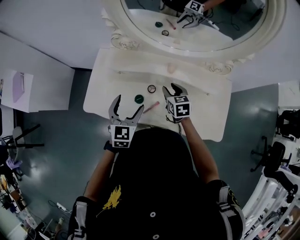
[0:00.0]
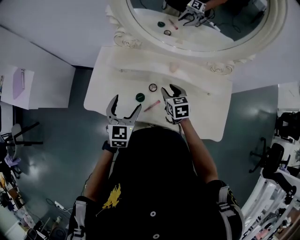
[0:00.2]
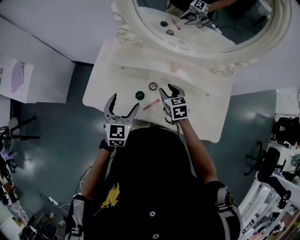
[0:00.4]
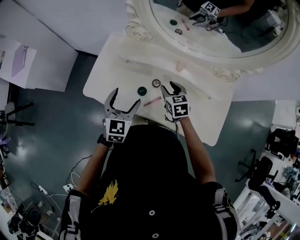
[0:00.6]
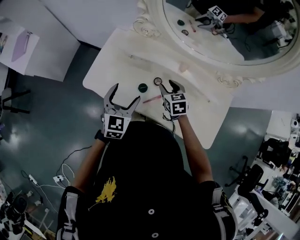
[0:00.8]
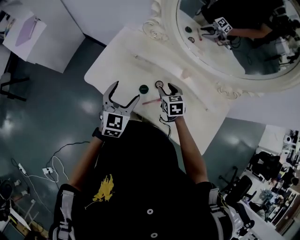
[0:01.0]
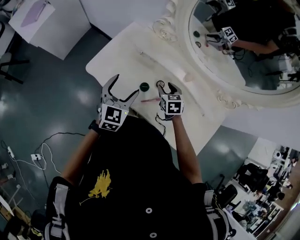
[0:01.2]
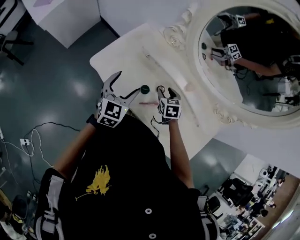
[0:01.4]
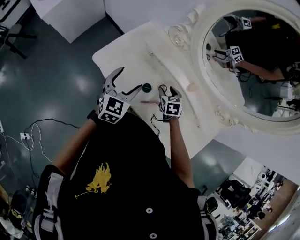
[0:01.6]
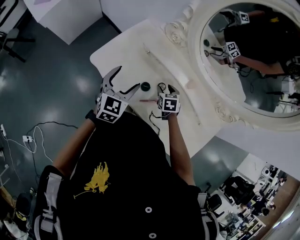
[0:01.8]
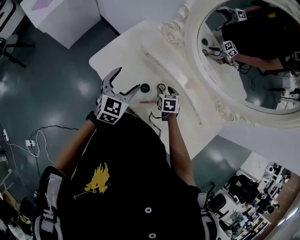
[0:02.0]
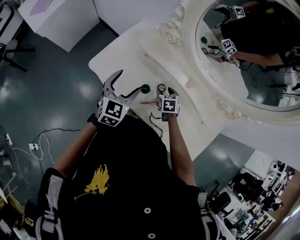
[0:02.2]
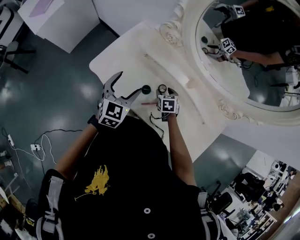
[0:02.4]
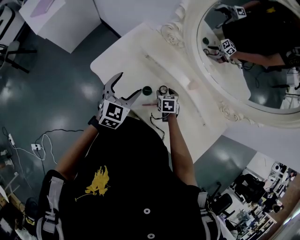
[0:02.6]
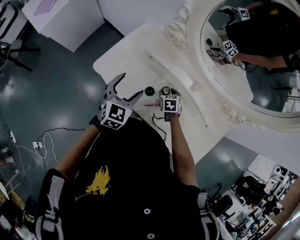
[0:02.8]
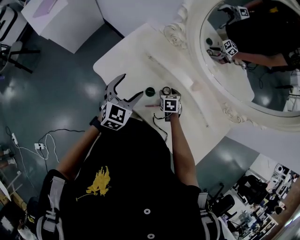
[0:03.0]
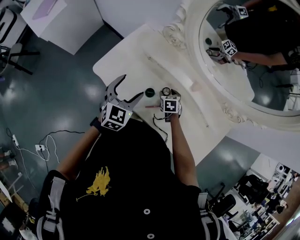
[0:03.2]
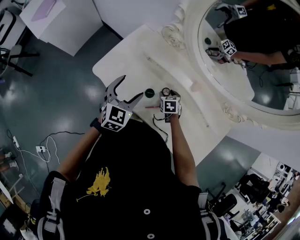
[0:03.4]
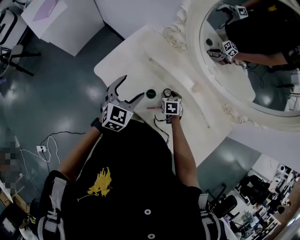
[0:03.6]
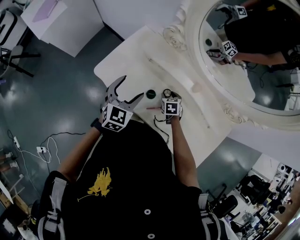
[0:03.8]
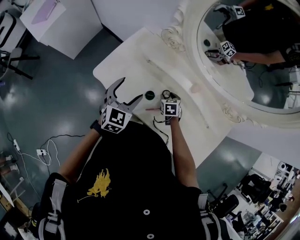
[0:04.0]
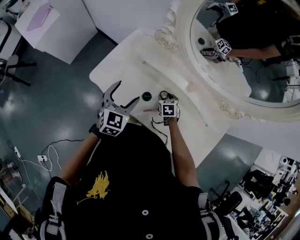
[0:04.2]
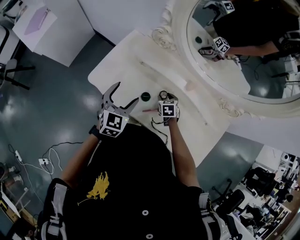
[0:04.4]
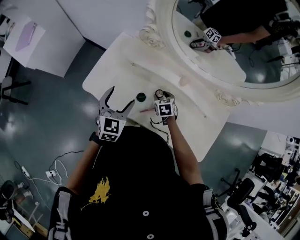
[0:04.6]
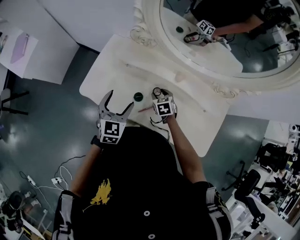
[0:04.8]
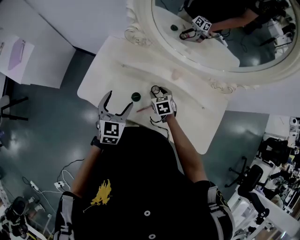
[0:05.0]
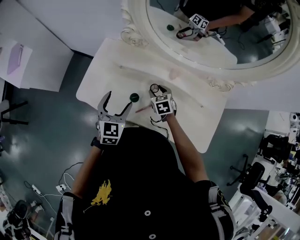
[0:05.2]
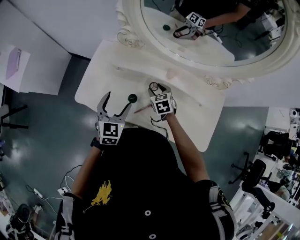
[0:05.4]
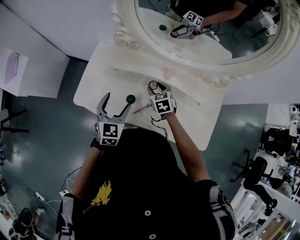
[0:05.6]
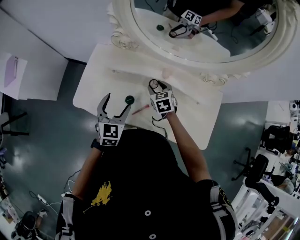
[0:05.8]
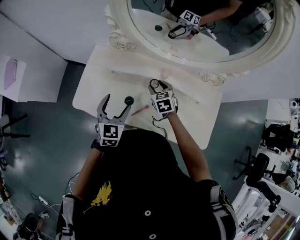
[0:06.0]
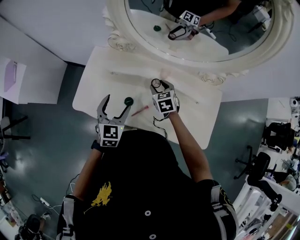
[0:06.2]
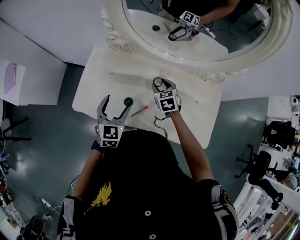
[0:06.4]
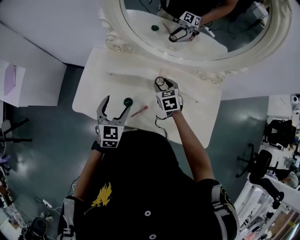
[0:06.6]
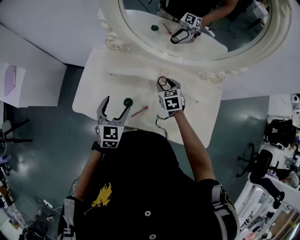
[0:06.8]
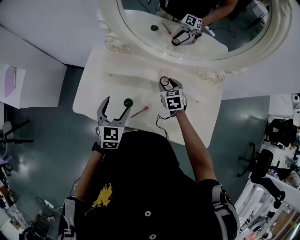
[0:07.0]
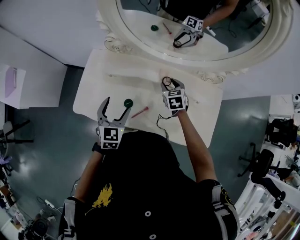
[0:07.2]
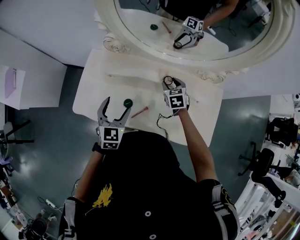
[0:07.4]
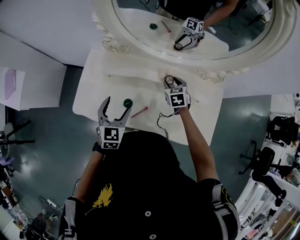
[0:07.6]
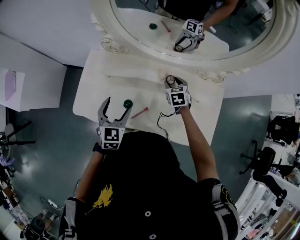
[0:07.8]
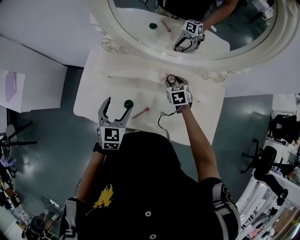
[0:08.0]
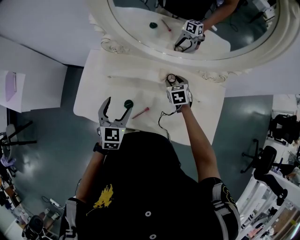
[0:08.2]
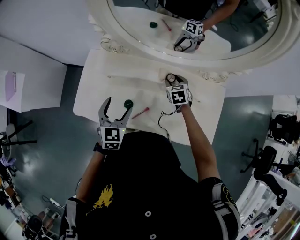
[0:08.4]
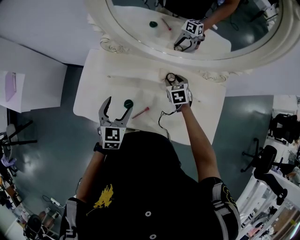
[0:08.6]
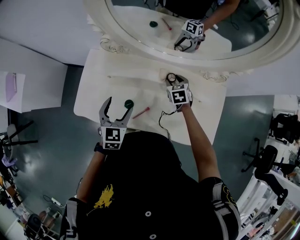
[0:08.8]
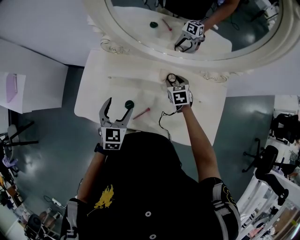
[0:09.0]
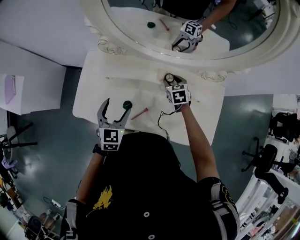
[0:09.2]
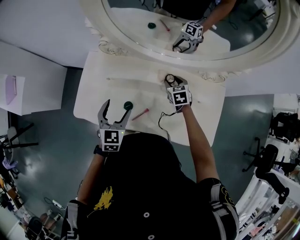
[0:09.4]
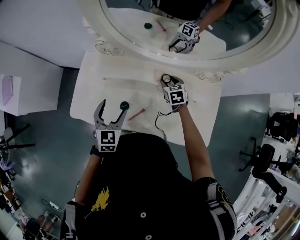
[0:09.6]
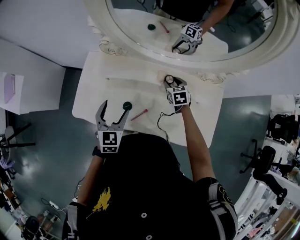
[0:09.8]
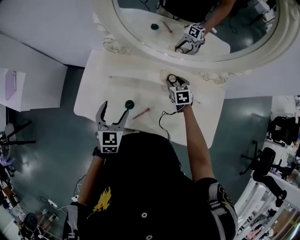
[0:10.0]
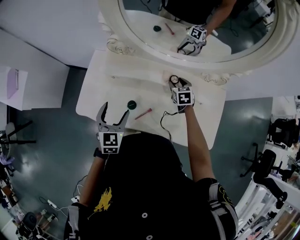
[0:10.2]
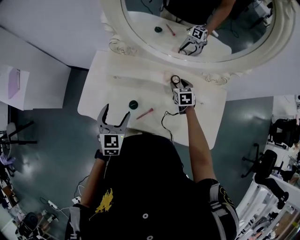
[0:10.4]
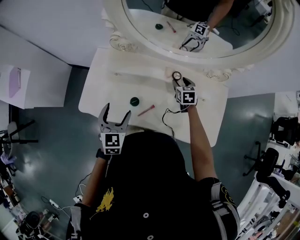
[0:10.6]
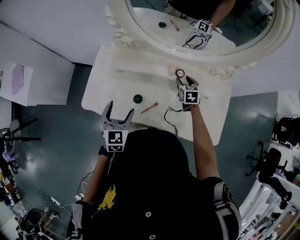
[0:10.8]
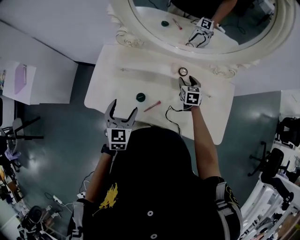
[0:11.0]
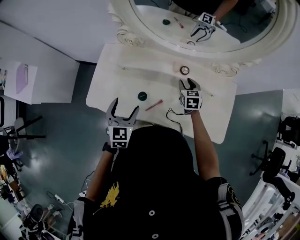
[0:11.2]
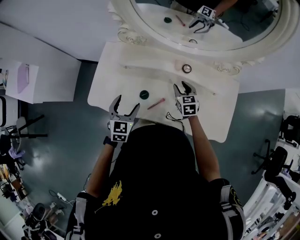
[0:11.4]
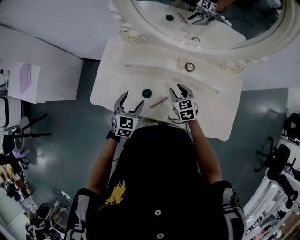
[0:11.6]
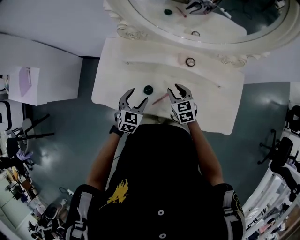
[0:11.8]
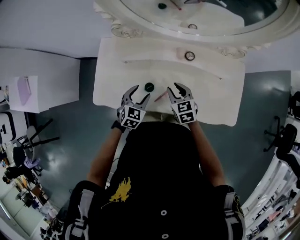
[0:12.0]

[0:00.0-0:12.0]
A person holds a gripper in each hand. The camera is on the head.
0:00.0 to 0:01.6: The left gripper shifts approximately 10 cm to the left, and rotates approximately 20 degrees, while the right gripper is displaced to the left and downward by roughly 10 cm, and turns by approximately 30 degrees.
0:01.6 to 0:03.0: The right gripper moves downward, approximately 10 cm.
0:03.0 to 0:04.4: The grippers move only a little.
0:04.4 to 0:06.0: The right gripper shifts about 10 cm upward; the left gripper travels to the right by roughly 5 cm.
0:06.0 to 0:07.6: The right gripper travels to the right by about 10 cm.
0:07.6 to 0:09.0: The grippers move only a little.
0:09.0 to 0:10.4: The left gripper moves roughly 5 cm.
0:10.4 to 0:12.0: The left gripper is displaced downward by some 10 cm, and changes its angle by some 30 degrees. The right gripper shifts roughly 20 cm backward and to the left.

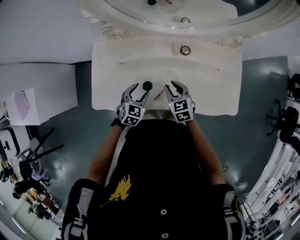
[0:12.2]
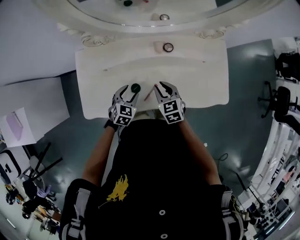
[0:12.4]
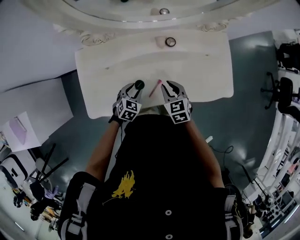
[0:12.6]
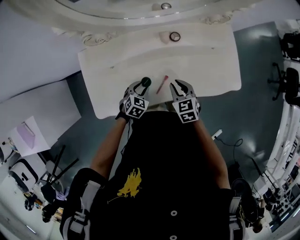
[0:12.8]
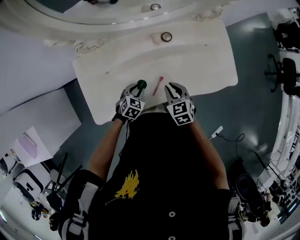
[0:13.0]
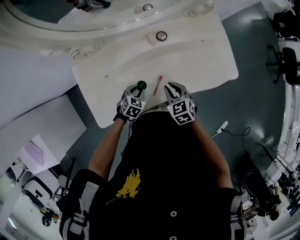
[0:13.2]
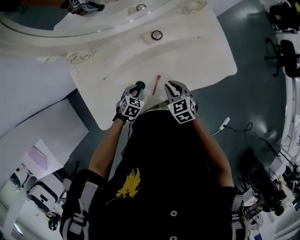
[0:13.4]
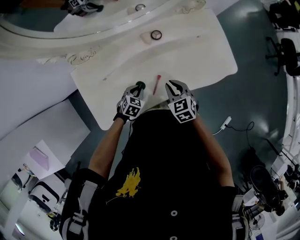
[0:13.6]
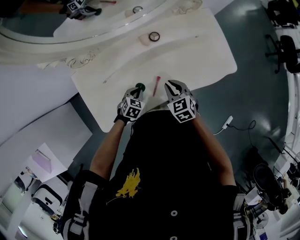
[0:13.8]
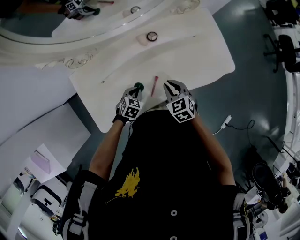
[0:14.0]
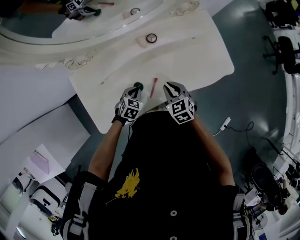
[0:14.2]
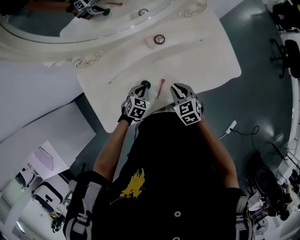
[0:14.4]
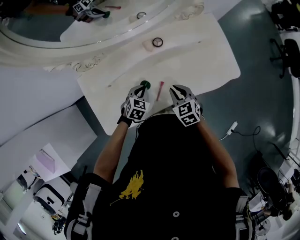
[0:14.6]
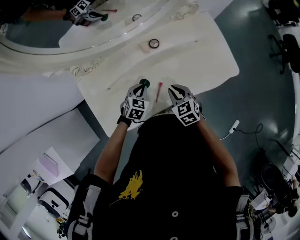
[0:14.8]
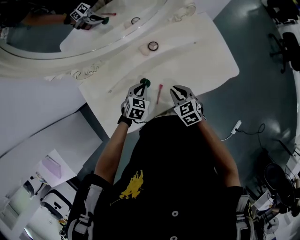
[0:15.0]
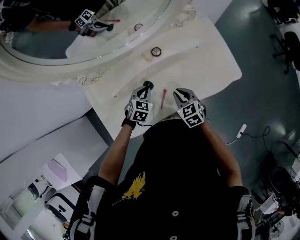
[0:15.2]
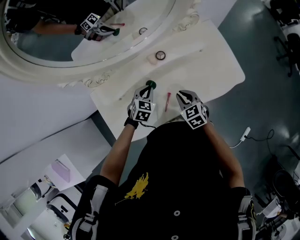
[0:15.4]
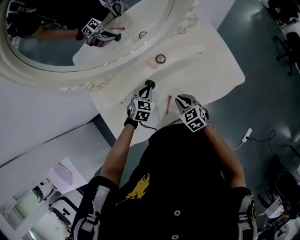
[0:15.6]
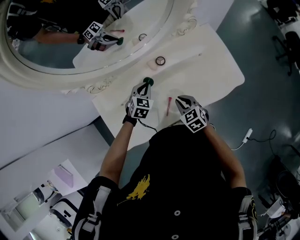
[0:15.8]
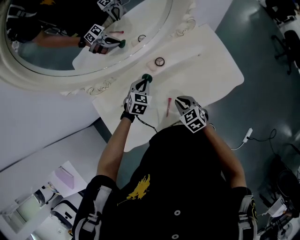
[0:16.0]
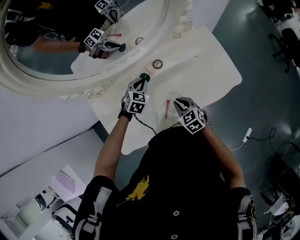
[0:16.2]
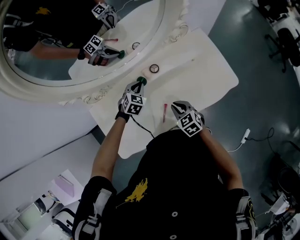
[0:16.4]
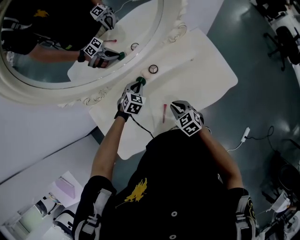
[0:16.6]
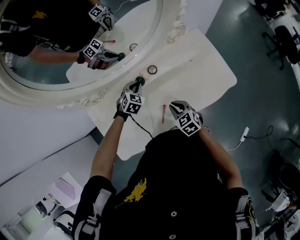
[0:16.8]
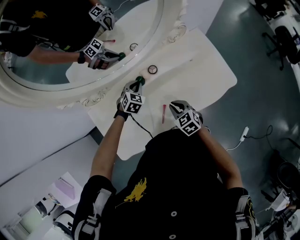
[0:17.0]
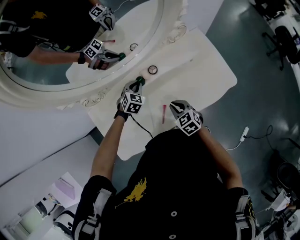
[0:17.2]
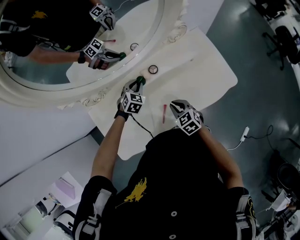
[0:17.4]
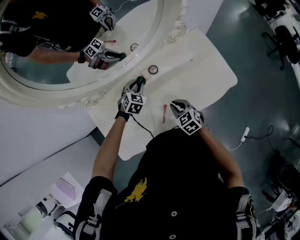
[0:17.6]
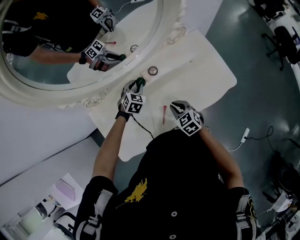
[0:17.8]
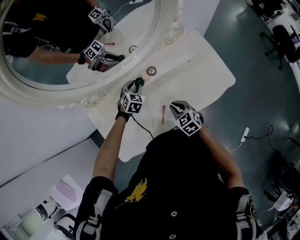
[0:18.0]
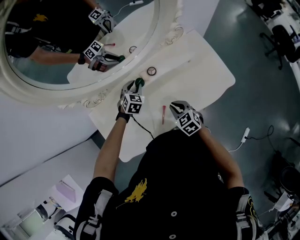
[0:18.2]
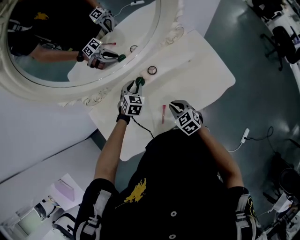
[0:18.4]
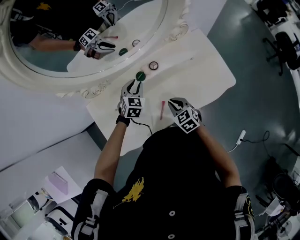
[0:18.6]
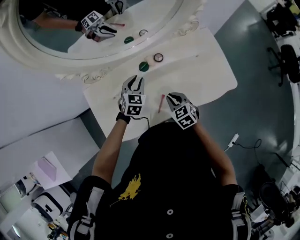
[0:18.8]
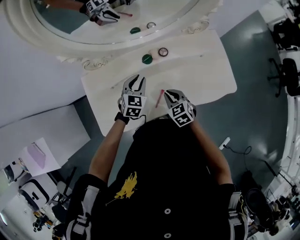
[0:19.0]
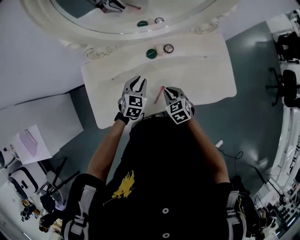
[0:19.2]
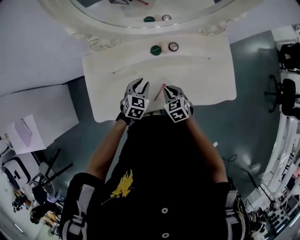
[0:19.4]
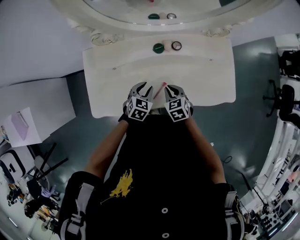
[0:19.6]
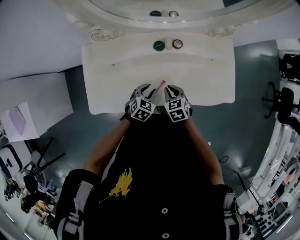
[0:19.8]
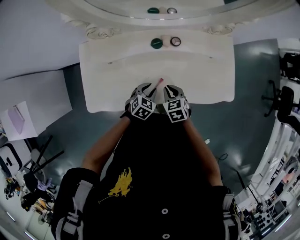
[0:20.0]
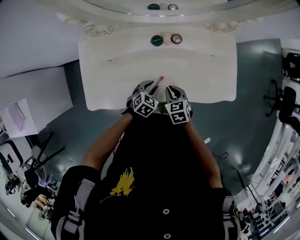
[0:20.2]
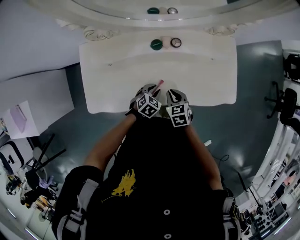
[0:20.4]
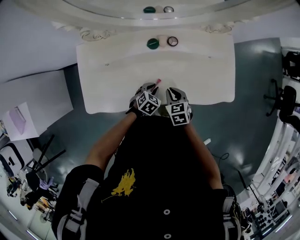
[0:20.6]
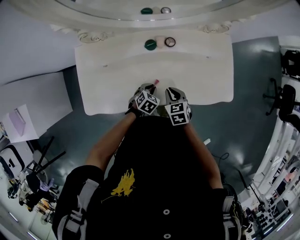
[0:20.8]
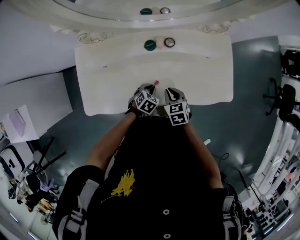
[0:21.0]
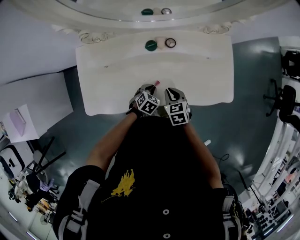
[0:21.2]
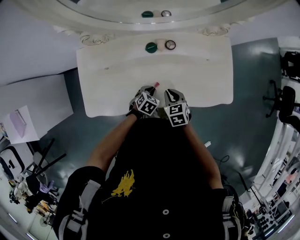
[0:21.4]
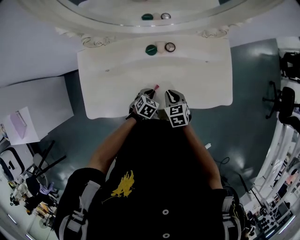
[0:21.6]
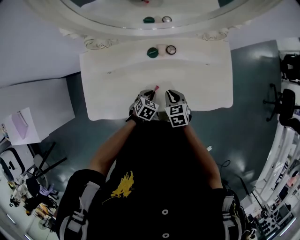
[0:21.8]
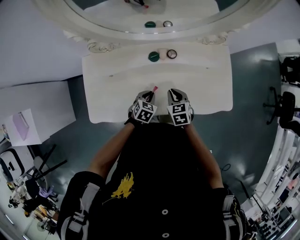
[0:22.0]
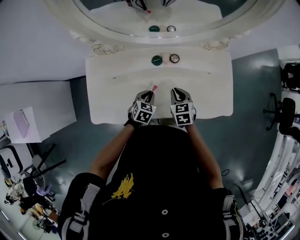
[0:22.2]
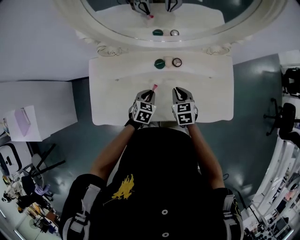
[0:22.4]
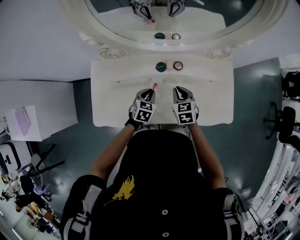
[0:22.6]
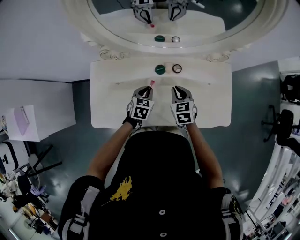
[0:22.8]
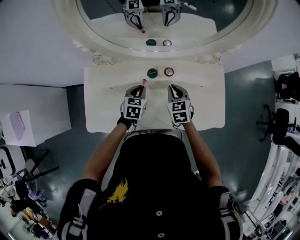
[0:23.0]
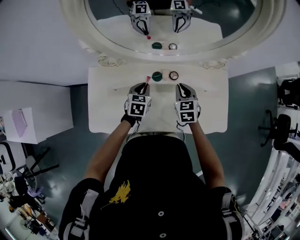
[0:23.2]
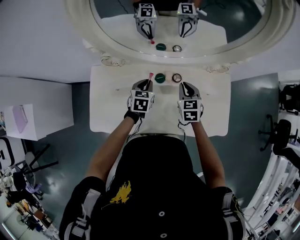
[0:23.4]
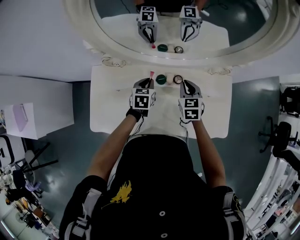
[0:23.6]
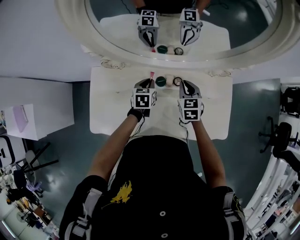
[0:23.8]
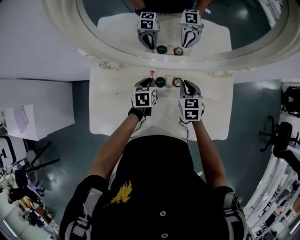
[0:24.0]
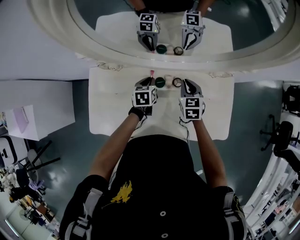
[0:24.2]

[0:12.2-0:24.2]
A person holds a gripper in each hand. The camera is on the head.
0:12.2 to 0:13.8: The right gripper ends up approximately 5 cm from where it was, while the left gripper heads downward, covering some 10 cm, turns by about 30 degrees, and closes.
0:13.8 to 0:15.2: The left gripper travels upward and forward by roughly 10 cm.
0:15.2 to 0:16.6: The left gripper moves forward, approximately 10 cm.
0:16.6 to 0:18.2: There are only small adjustments of the grippers.
0:18.2 to 0:19.8: The right gripper ends up roughly 5 cm from where it was; the left gripper moves backward, about 20 cm, and turns by approximately 30 degrees.
0:19.8 to 0:21.2: The left gripper shifts about 10 cm downward.
0:21.2 to 0:22.6: The left gripper moves upward, forward and to the left, about 15 cm, and swivels some 20 degrees, while the right gripper is displaced forward and upward by roughly 15 cm.
0:22.6 to 0:24.2: The grippers both shift forward by roughly 15 cm. The left gripper changes its angle by some 30 degrees.
